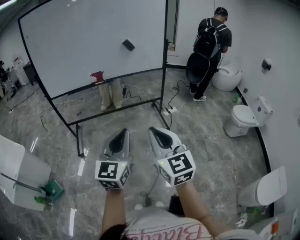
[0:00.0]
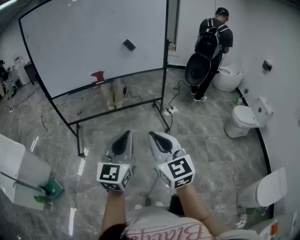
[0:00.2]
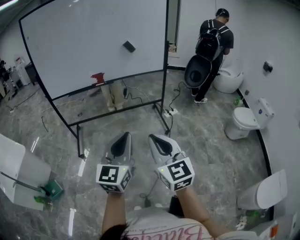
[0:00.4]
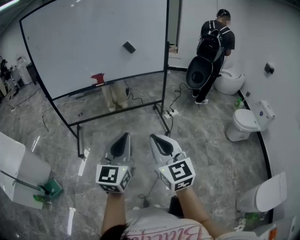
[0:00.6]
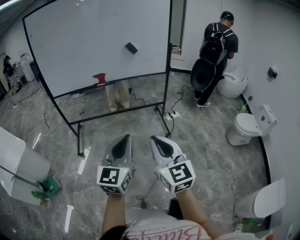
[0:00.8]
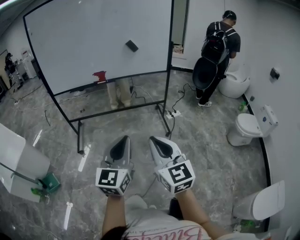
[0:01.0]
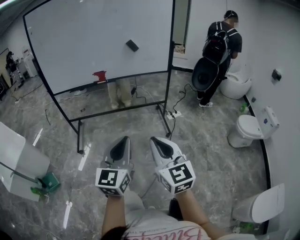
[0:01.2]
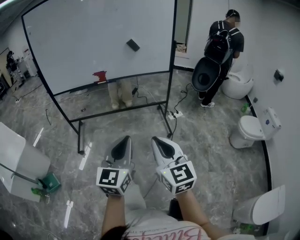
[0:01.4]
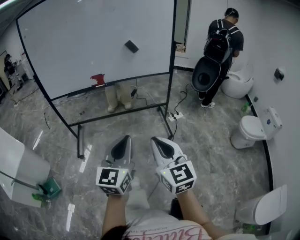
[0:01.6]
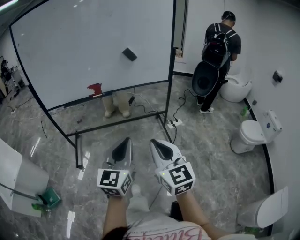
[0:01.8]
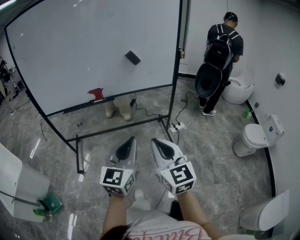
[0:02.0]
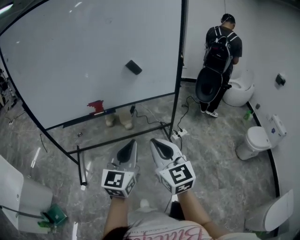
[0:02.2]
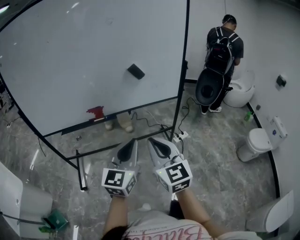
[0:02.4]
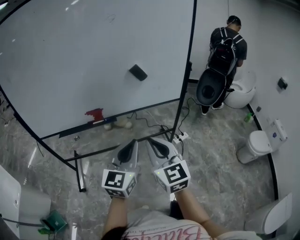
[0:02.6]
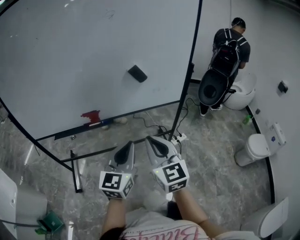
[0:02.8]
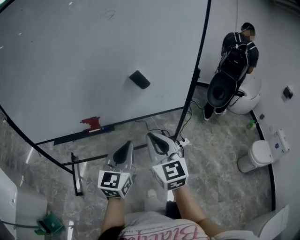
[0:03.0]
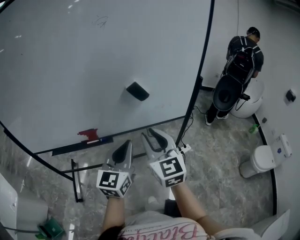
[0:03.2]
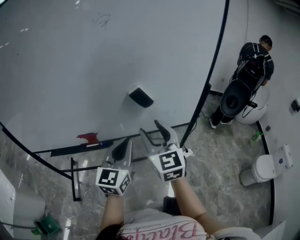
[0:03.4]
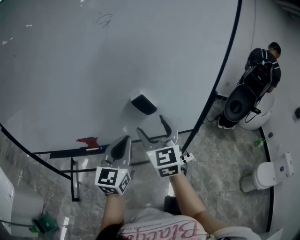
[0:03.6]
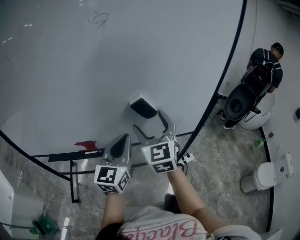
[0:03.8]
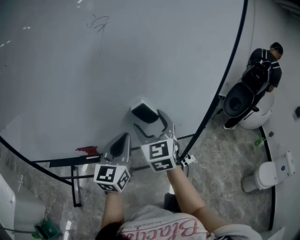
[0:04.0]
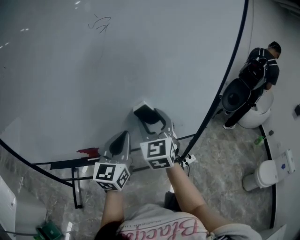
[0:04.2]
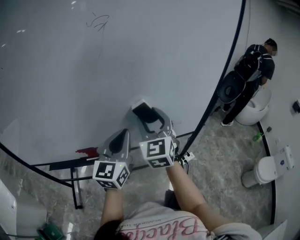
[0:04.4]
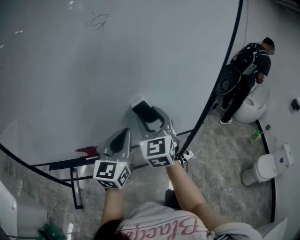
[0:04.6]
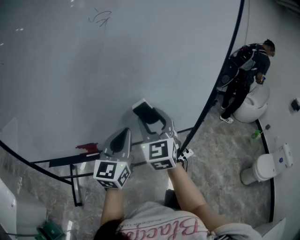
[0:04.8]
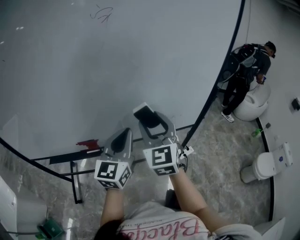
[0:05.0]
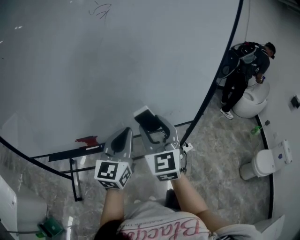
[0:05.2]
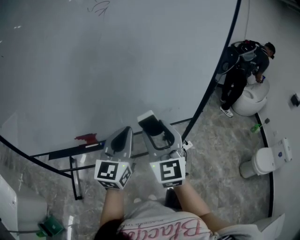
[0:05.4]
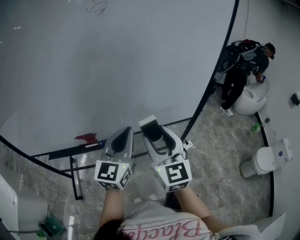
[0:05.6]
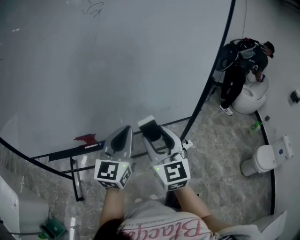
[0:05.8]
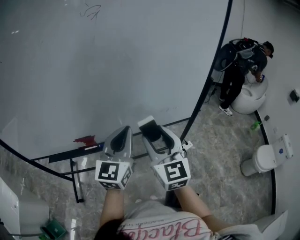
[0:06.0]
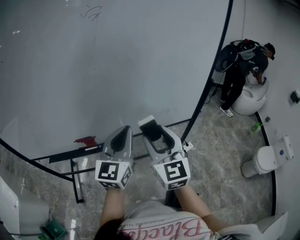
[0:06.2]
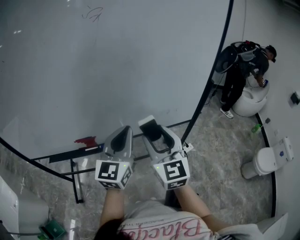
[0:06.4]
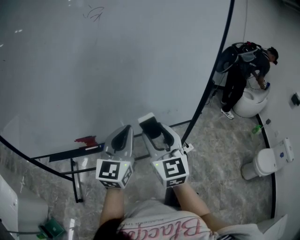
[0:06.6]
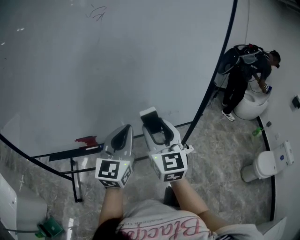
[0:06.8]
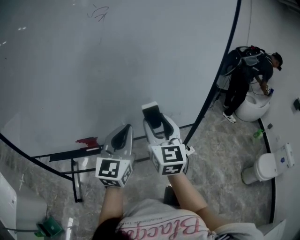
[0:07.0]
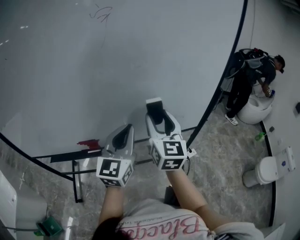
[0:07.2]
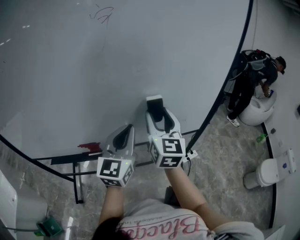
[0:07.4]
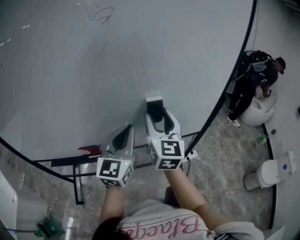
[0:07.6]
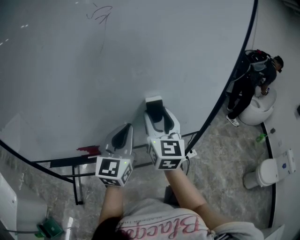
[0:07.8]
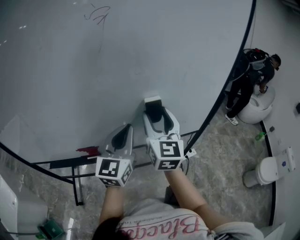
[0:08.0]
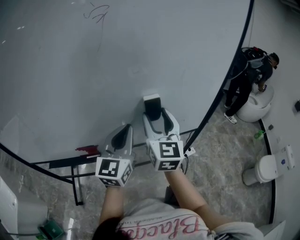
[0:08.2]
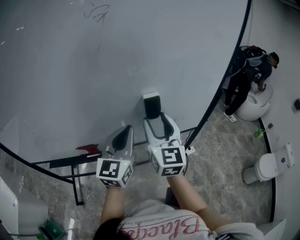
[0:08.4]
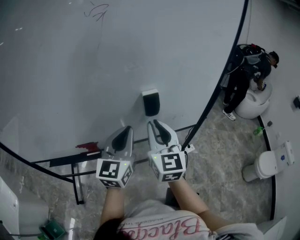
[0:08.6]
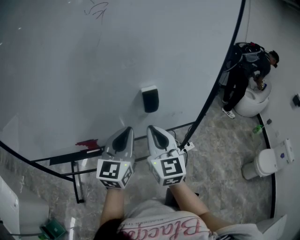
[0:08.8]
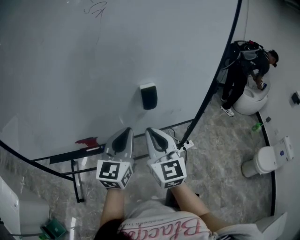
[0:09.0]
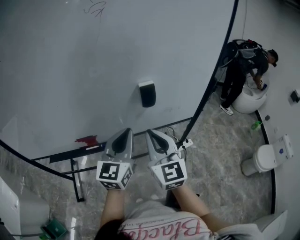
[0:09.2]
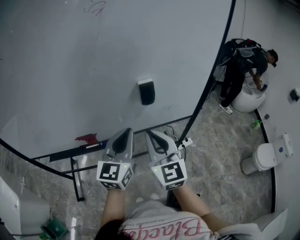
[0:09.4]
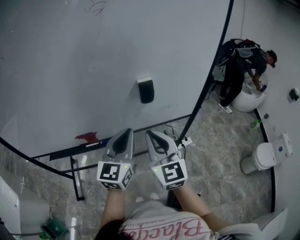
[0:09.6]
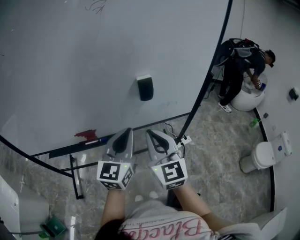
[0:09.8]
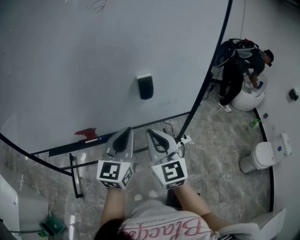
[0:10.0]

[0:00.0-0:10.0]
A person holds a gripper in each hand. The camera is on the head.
0:00.0 to 0:01.4: The right gripper shifts by about 5 cm. The left gripper shifts by approximately 5 cm.
0:01.4 to 0:02.8: The two grippers go some 35 cm forward.
0:02.8 to 0:04.2: Both grippers move forward, some 30 cm. The right gripper opens up.
0:04.2 to 0:05.8: The right gripper heads backward, covering approximately 15 cm, while the left gripper moves roughly 5 cm.
0:05.8 to 0:07.2: The right gripper goes about 10 cm forward.
0:07.2 to 0:08.6: The right gripper closes its fingers.
0:08.6 to 0:10.0: Both grippers travel together backward, some 10 cm.

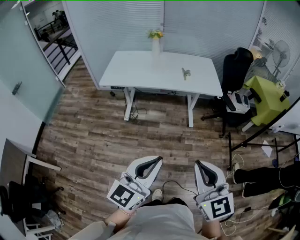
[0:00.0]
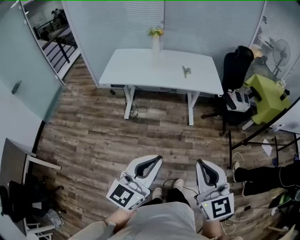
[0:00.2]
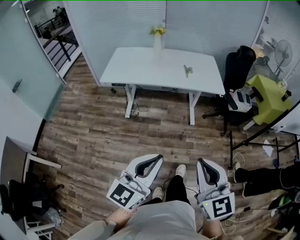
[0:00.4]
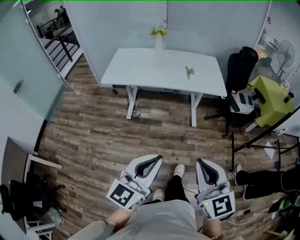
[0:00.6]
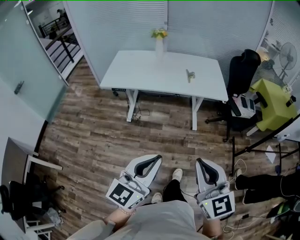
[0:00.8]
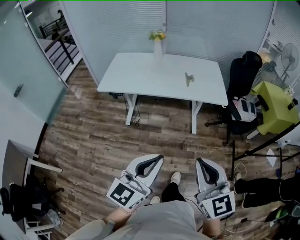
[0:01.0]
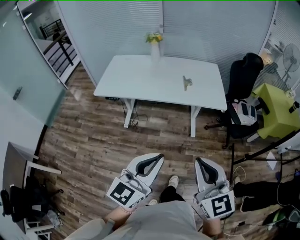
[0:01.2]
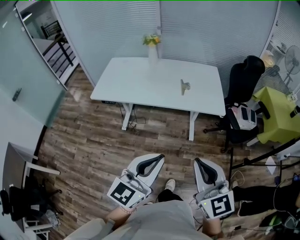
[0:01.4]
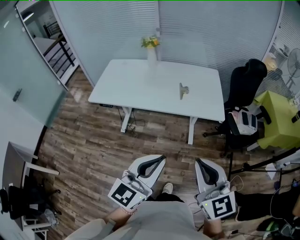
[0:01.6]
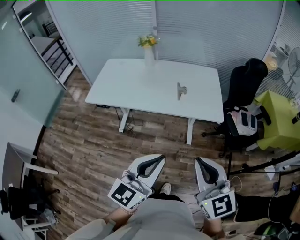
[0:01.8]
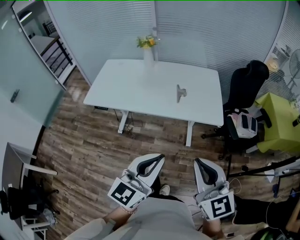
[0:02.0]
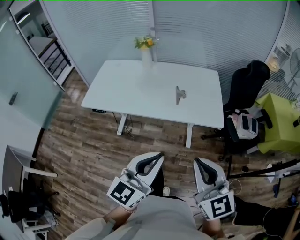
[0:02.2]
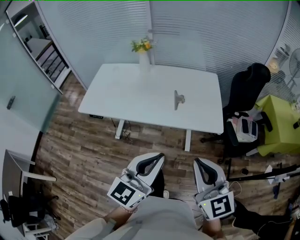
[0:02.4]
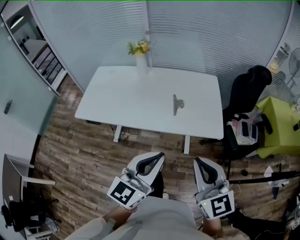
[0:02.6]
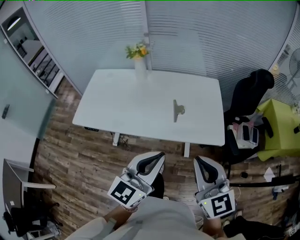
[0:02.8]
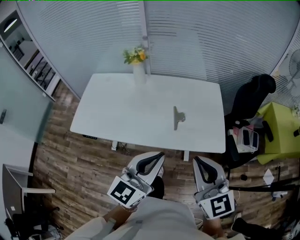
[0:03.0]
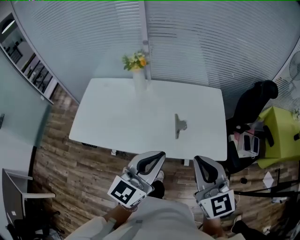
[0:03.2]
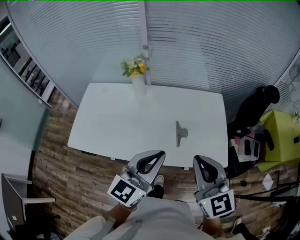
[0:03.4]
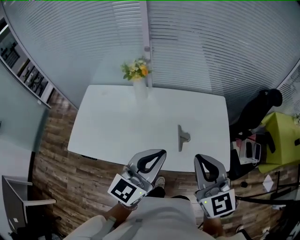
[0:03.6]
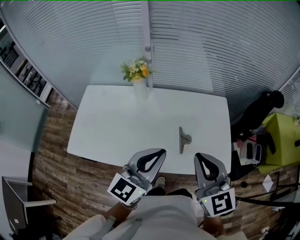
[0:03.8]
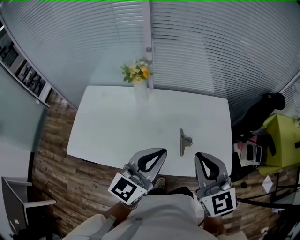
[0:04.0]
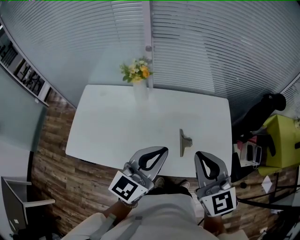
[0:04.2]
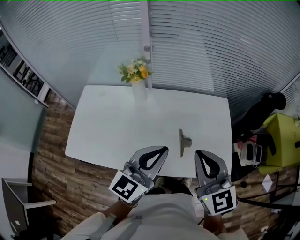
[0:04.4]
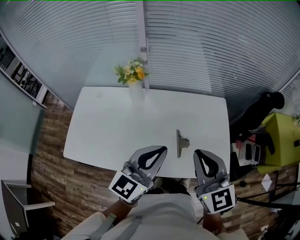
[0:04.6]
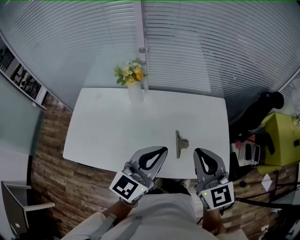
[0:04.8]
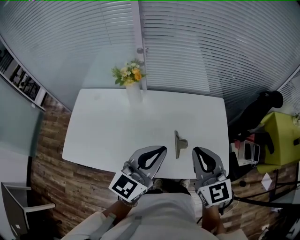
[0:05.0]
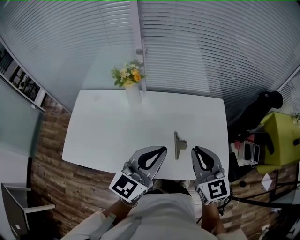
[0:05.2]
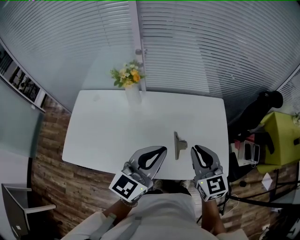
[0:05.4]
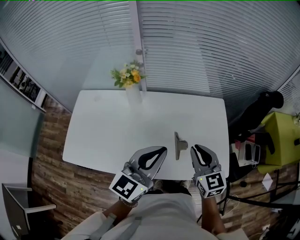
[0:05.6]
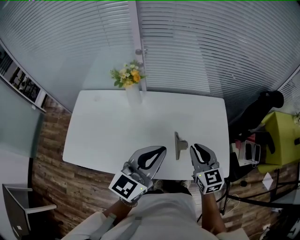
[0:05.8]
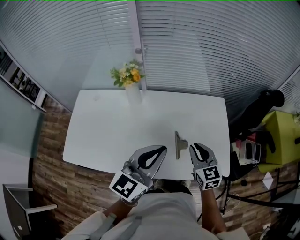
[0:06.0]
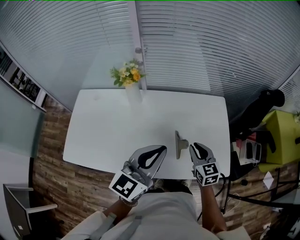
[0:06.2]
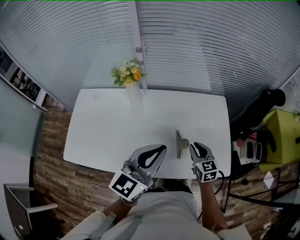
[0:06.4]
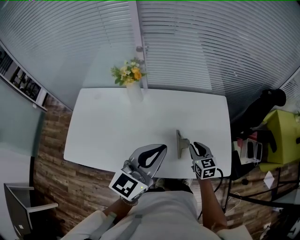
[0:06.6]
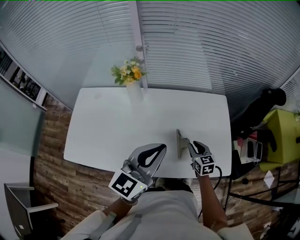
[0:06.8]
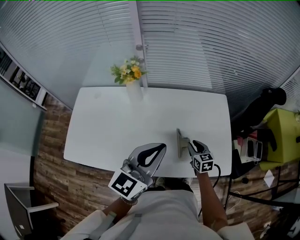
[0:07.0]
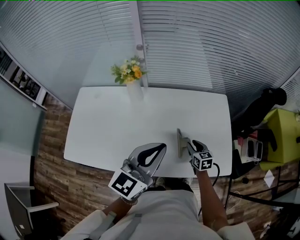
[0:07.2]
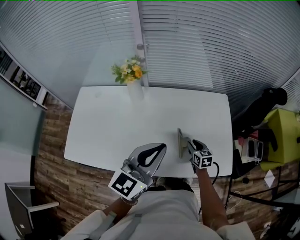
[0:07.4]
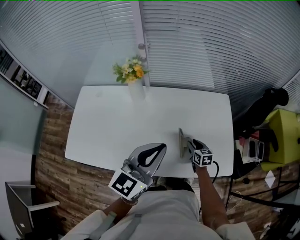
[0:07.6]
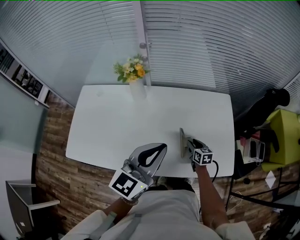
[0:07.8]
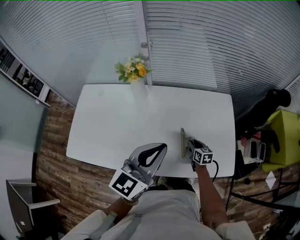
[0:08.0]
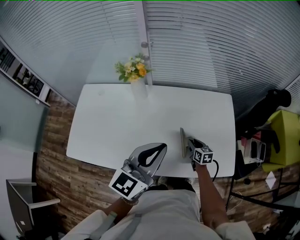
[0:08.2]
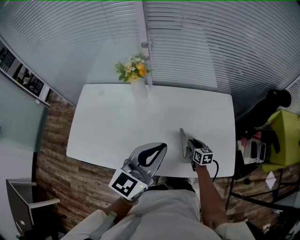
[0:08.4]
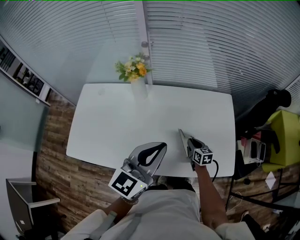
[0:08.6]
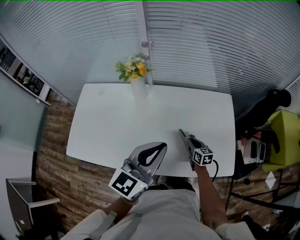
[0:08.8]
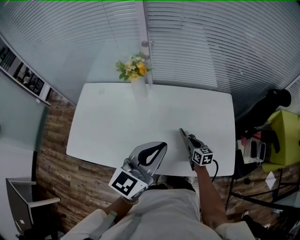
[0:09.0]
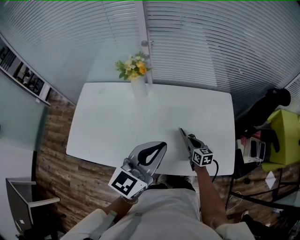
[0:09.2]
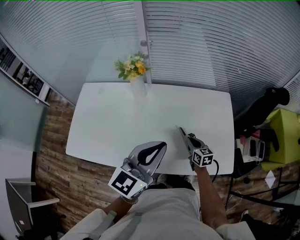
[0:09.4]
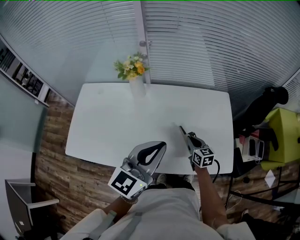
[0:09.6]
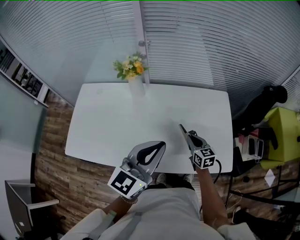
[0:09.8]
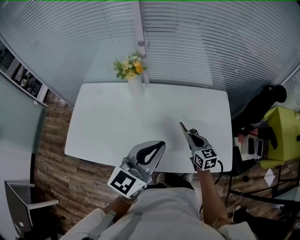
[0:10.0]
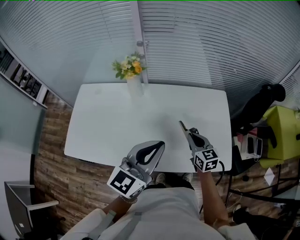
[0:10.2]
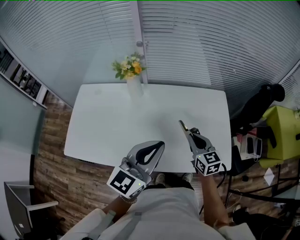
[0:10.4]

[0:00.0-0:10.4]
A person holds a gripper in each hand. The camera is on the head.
0:00.0 to 0:01.4: The right gripper travels forward by approximately 25 cm. Meanwhile the left gripper shifts some 25 cm forward and to the right.
0:01.4 to 0:03.0: The grippers both shift forward by about 35 cm.
0:03.0 to 0:04.4: The grippers both shift forward by about 20 cm.
0:04.4 to 0:06.0: The right gripper moves downward and forward, about 20 cm.
0:06.0 to 0:07.4: The right gripper moves downward, some 20 cm, and turns by roughly 20 degrees.
0:07.4 to 0:09.0: The right gripper closes up.
0:09.0 to 0:10.4: The right gripper heads upward, covering about 20 cm.

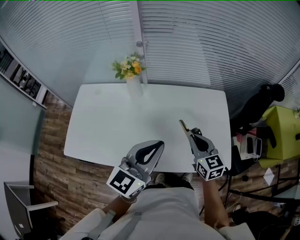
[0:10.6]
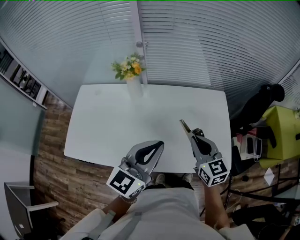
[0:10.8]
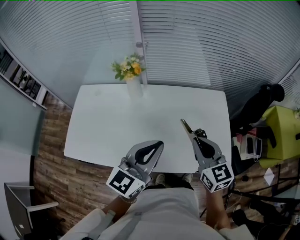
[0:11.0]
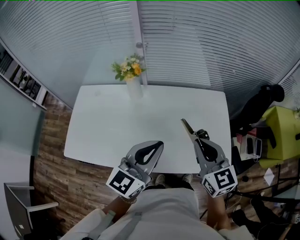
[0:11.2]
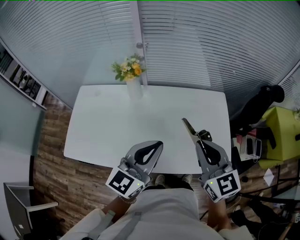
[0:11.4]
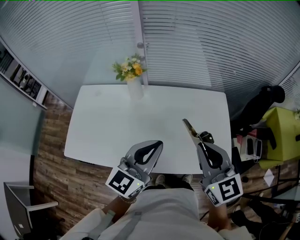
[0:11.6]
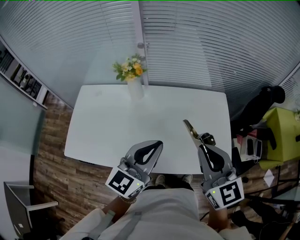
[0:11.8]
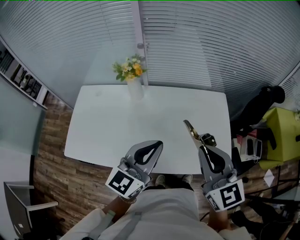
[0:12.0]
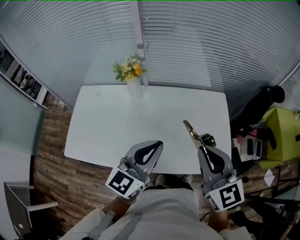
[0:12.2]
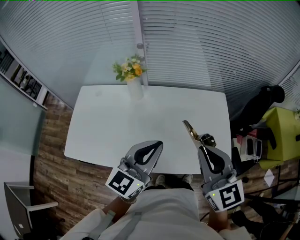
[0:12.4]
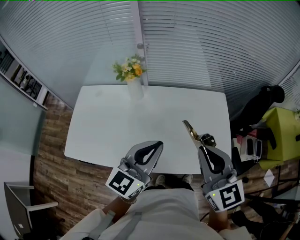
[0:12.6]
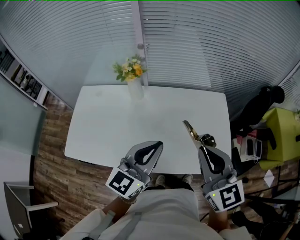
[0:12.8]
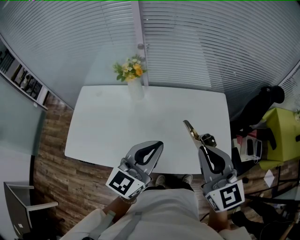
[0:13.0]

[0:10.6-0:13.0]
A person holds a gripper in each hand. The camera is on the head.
0:10.6 to 0:11.8: The right gripper shifts about 15 cm upward.
0:11.8 to 0:13.0: The two grippers keep their place.

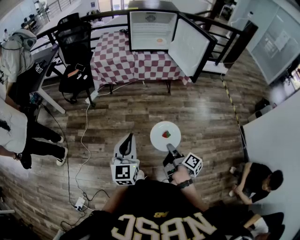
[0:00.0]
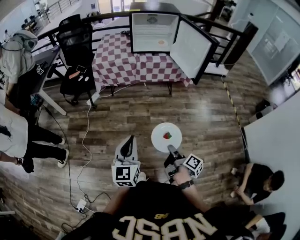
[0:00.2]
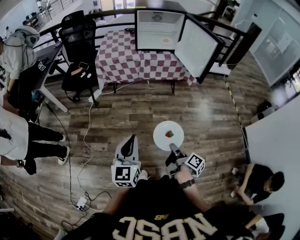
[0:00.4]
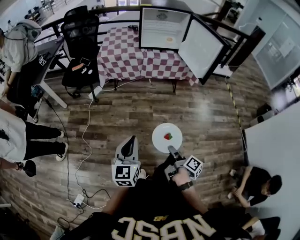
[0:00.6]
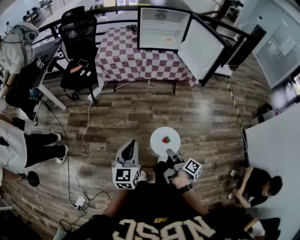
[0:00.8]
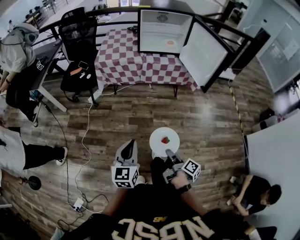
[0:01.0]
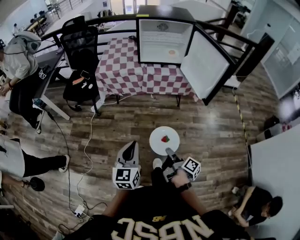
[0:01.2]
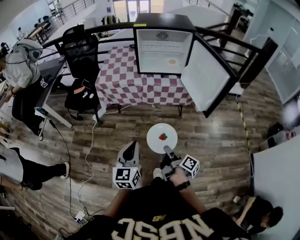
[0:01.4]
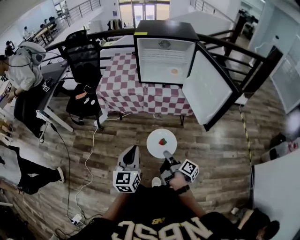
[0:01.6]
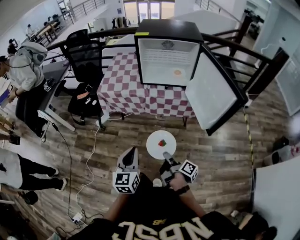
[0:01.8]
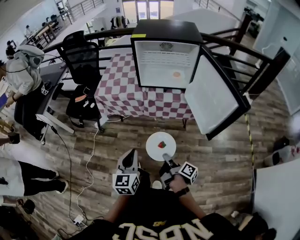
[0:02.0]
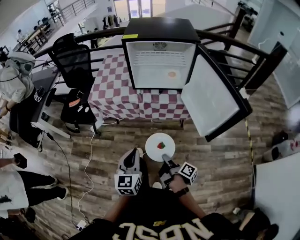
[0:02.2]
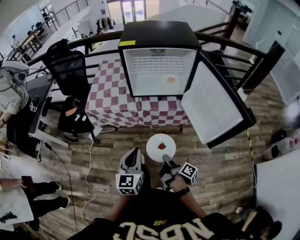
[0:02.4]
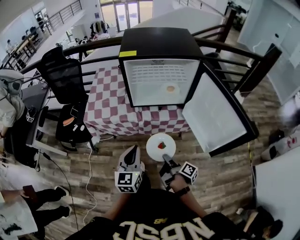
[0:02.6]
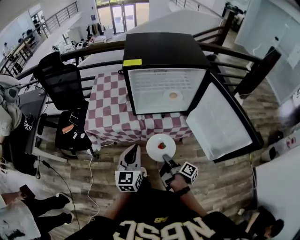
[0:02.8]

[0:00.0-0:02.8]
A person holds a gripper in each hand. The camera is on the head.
0:00.0 to 0:01.4: The left gripper shifts by some 25 cm.
0:01.4 to 0:02.8: The left gripper moves about 35 cm.
